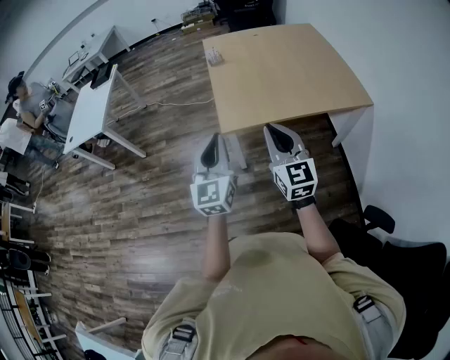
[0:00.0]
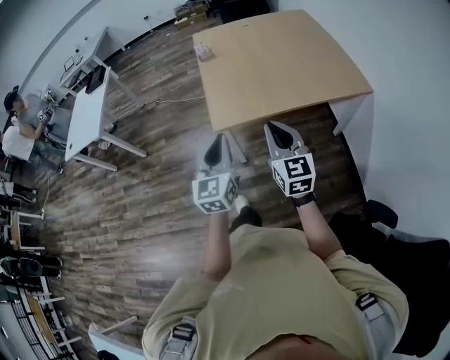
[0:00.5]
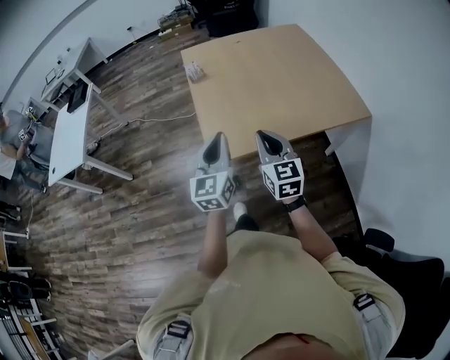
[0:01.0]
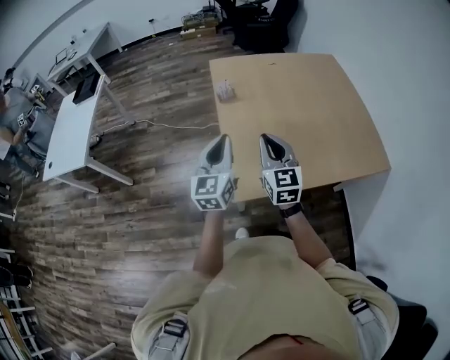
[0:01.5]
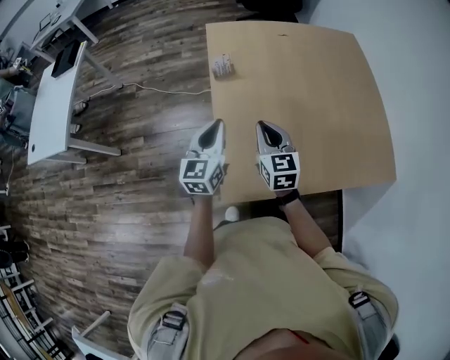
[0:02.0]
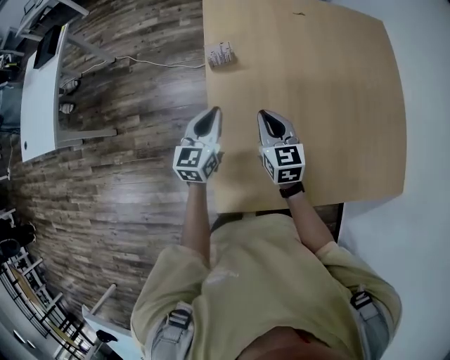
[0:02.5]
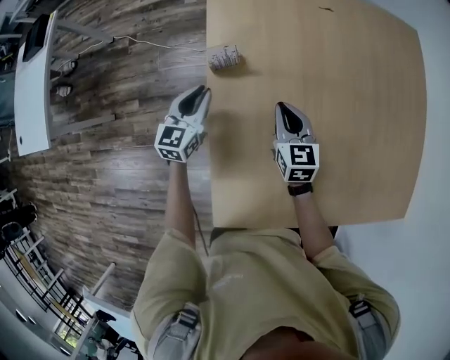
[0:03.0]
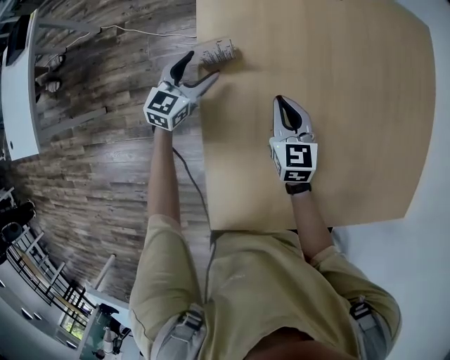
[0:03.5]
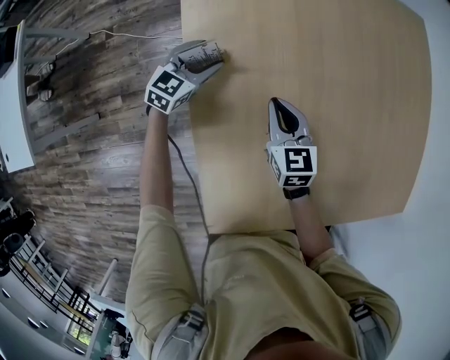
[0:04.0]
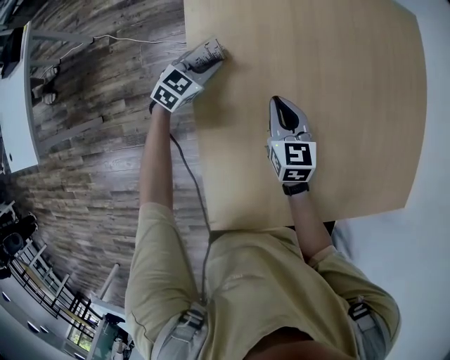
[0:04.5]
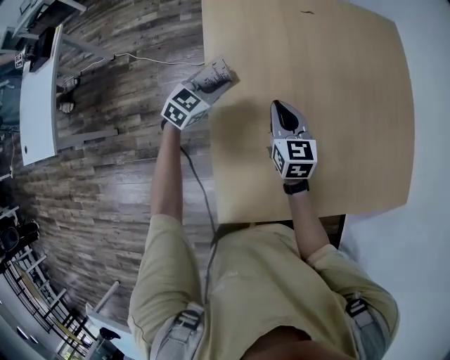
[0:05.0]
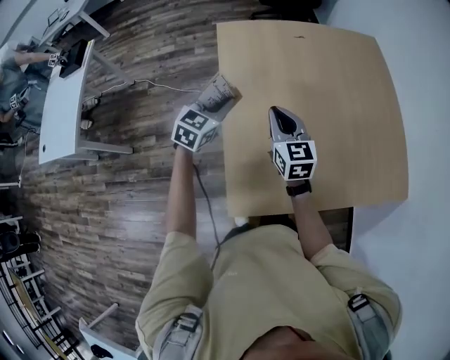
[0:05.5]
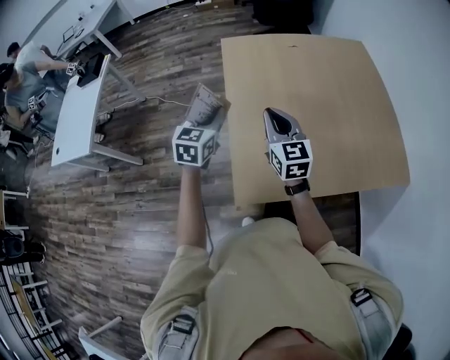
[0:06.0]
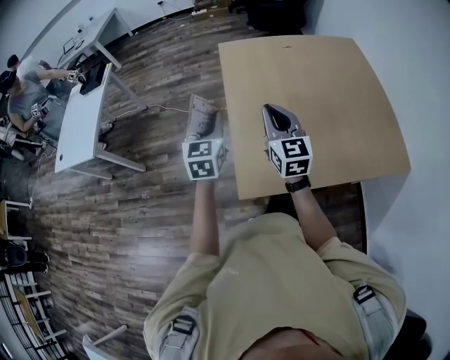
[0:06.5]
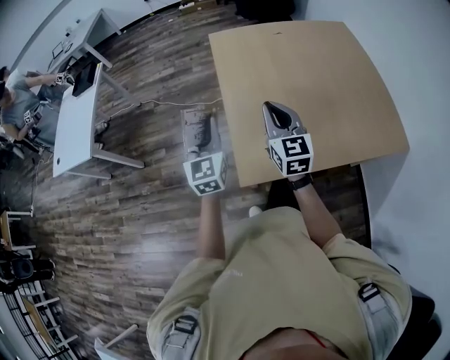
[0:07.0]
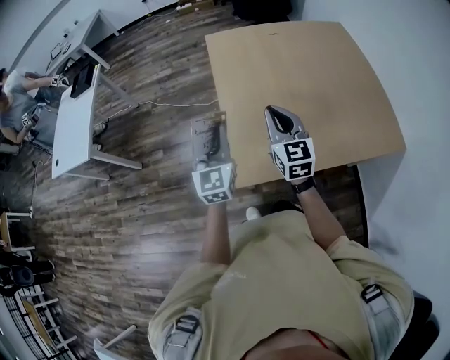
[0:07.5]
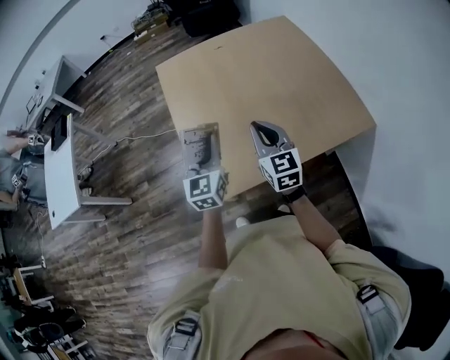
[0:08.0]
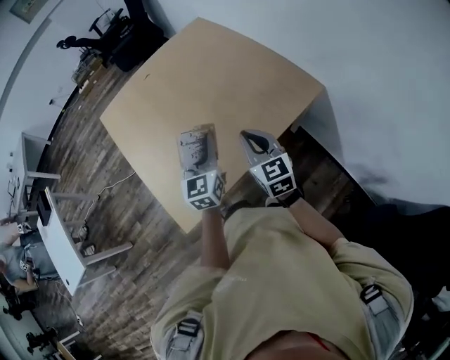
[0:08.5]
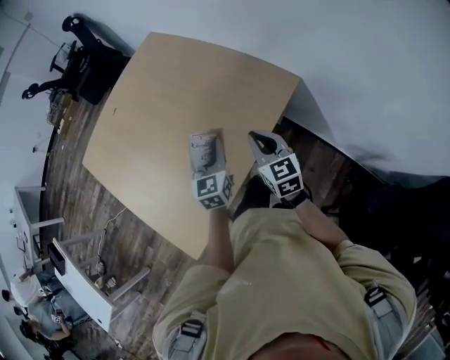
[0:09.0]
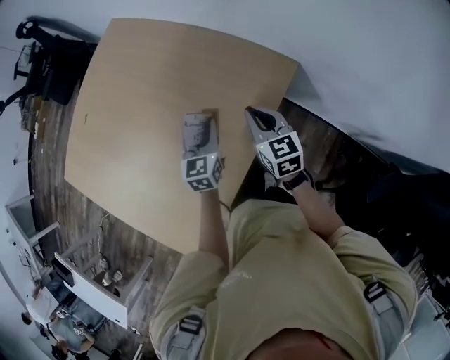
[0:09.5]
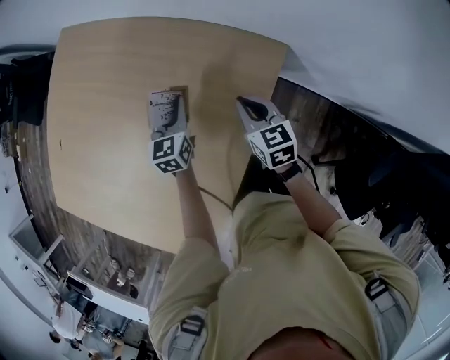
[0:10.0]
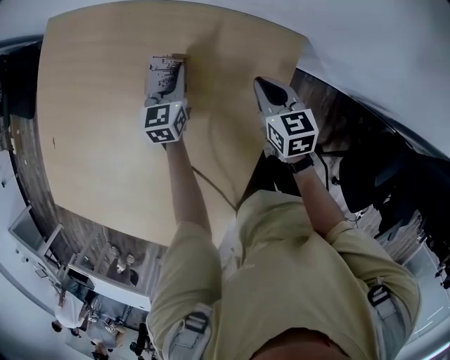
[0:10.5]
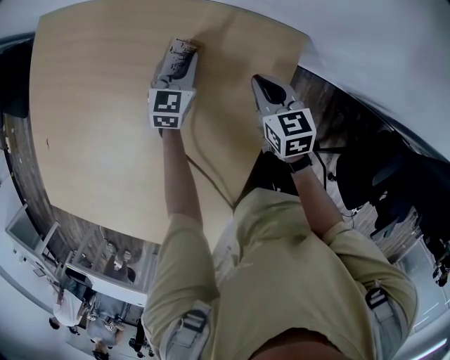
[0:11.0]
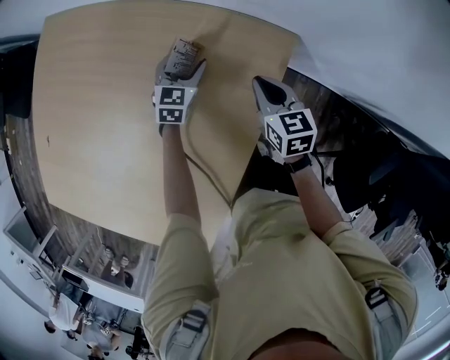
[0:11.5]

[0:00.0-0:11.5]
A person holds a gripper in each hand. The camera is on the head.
0:00.0 to 0:02.0: Both grippers are carried forward, approximately 60 cm. The right gripper rotates about 20 degrees. Meanwhile the left gripper turns by roughly 20 degrees.
0:02.0 to 0:04.0: The grippers both shift forward and downward by approximately 40 cm. The left gripper turns by some 40 degrees, and opens.
0:04.0 to 0:06.0: Both grippers travel together backward and upward, roughly 40 cm. The left gripper swivels approximately 20 degrees, and closes its fingers; the right gripper swivels some 20 degrees.
0:06.0 to 0:07.5: The left gripper shifts approximately 15 cm backward, and turns by roughly 20 degrees; the right gripper goes approximately 10 cm backward.
0:07.5 to 0:09.5: The pair of grippers is taken roughly 60 cm. The right gripper swivels some 50 degrees, while the left gripper turns by about 60 degrees.
0:09.5 to 0:11.5: The left gripper heads forward and downward, covering about 25 cm, turns by approximately 30 degrees, and opens. The right gripper travels downward, forward and to the right by roughly 20 cm.

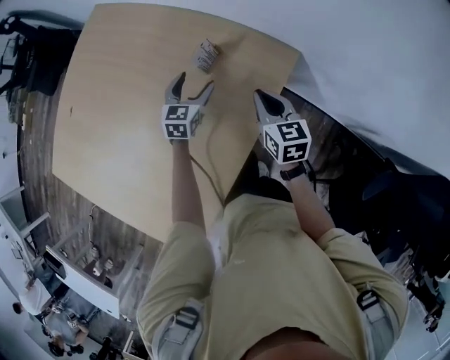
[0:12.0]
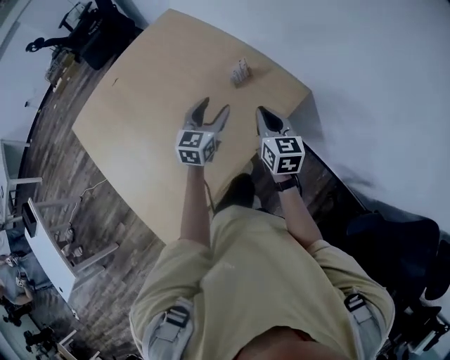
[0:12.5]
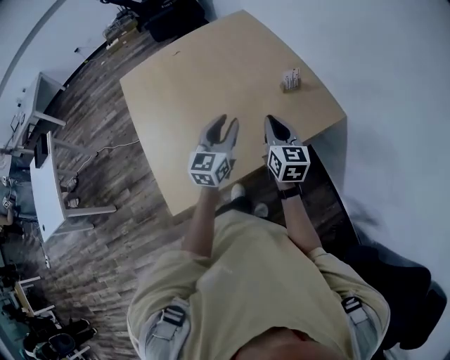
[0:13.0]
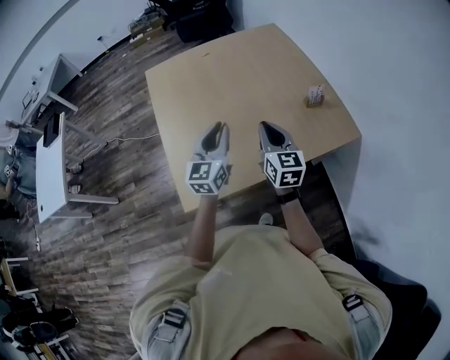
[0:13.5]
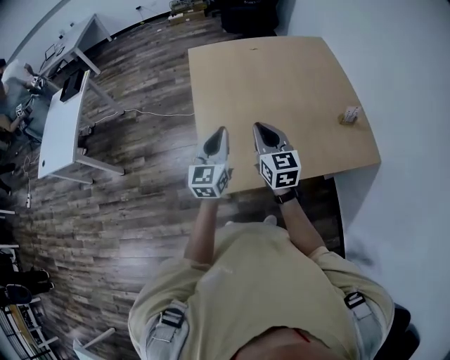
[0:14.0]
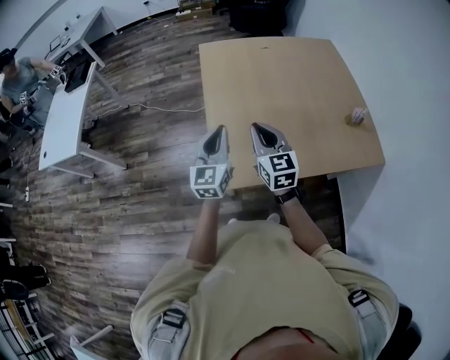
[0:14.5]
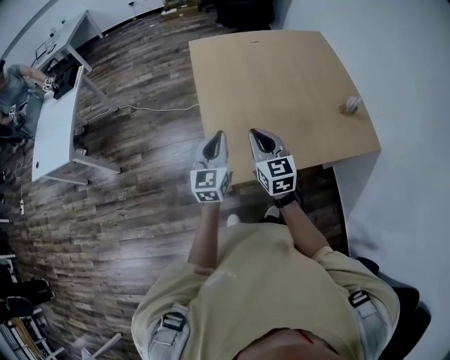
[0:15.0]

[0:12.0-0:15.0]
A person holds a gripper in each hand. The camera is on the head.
0:12.0 to 0:13.5: The right gripper ends up roughly 40 cm from where it was, and changes its angle by some 40 degrees. Meanwhile the left gripper shifts by approximately 50 cm, changes its angle by roughly 50 degrees, and closes up.
0:13.5 to 0:15.0: The grippers both shift to the left by approximately 30 cm.

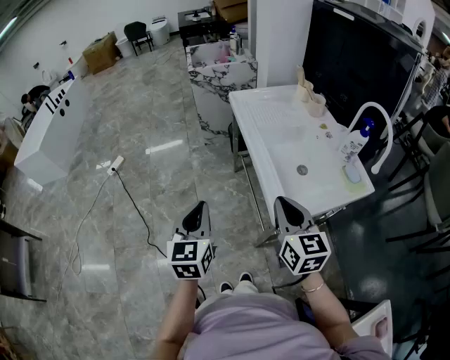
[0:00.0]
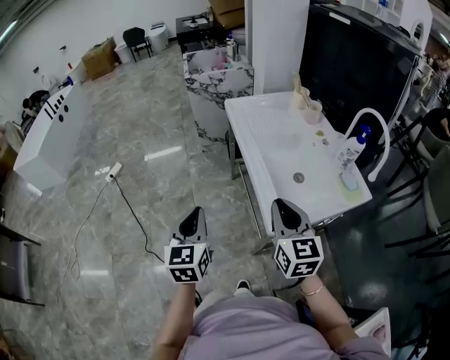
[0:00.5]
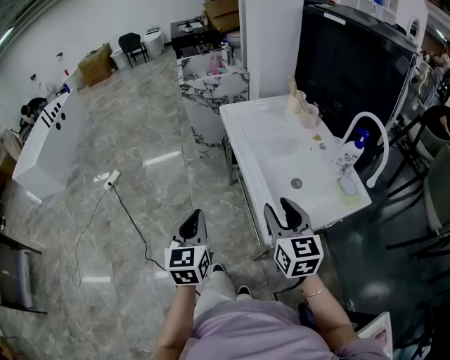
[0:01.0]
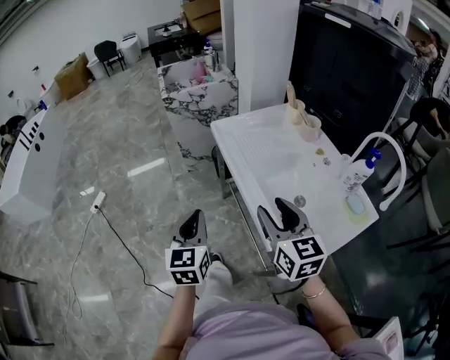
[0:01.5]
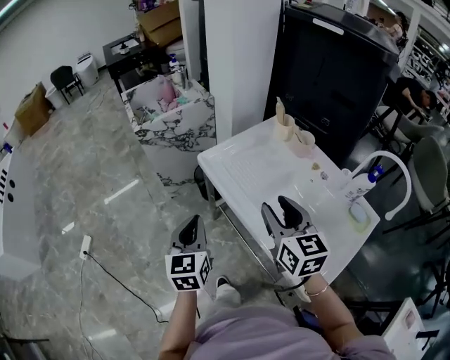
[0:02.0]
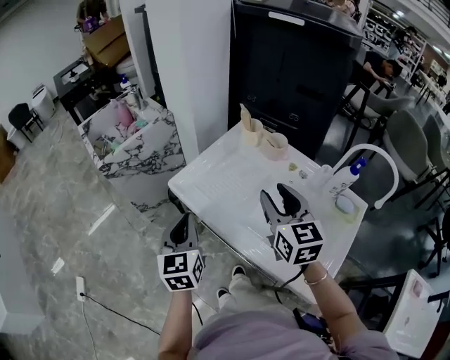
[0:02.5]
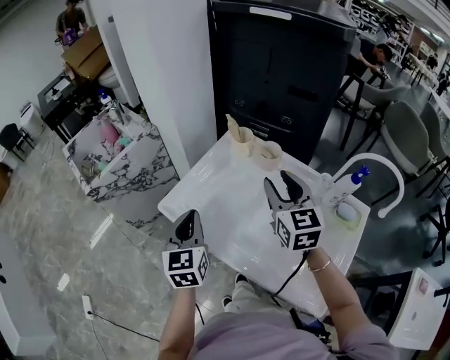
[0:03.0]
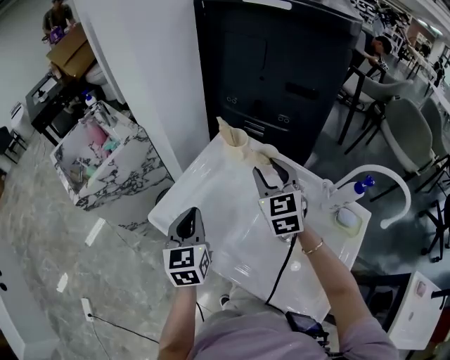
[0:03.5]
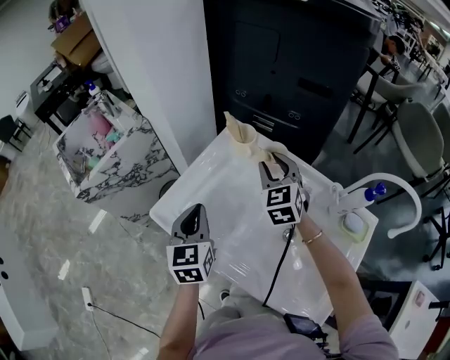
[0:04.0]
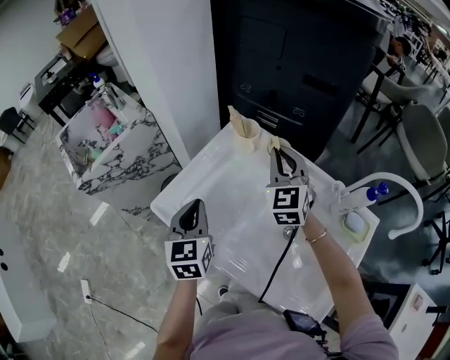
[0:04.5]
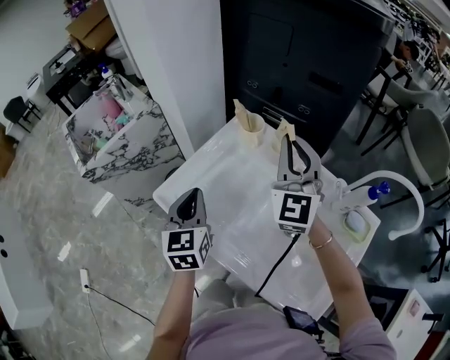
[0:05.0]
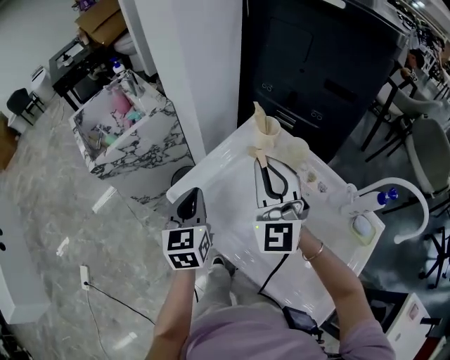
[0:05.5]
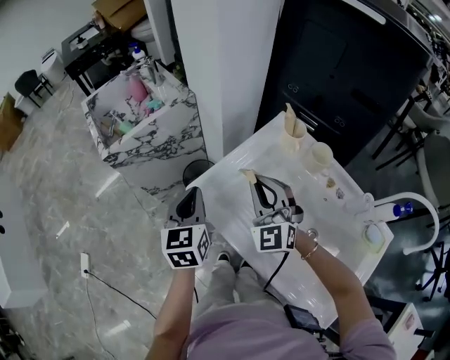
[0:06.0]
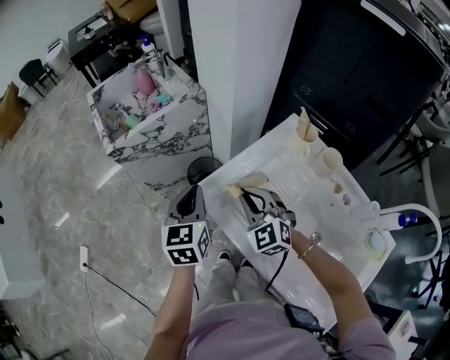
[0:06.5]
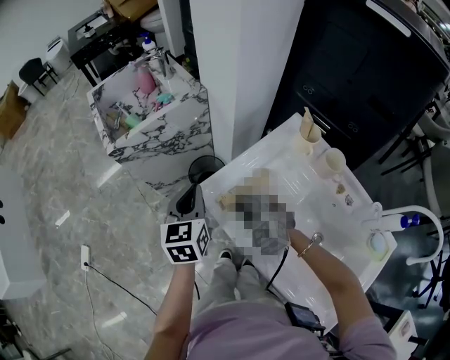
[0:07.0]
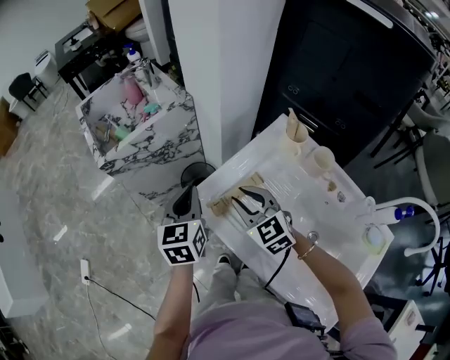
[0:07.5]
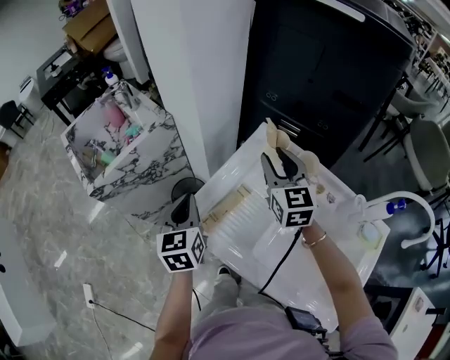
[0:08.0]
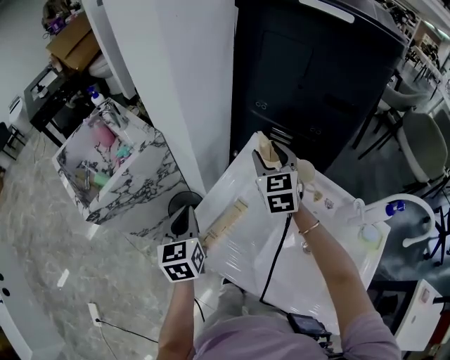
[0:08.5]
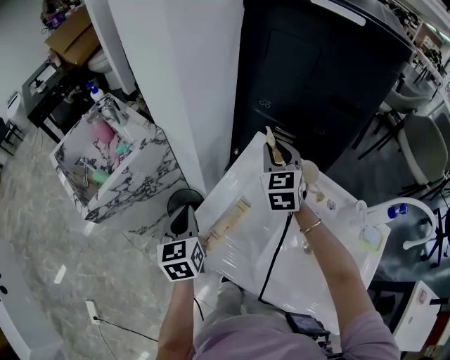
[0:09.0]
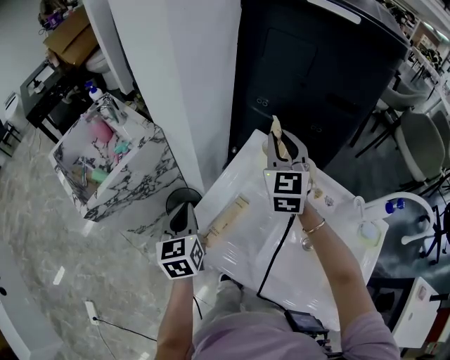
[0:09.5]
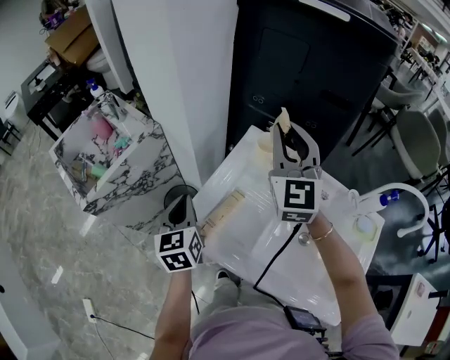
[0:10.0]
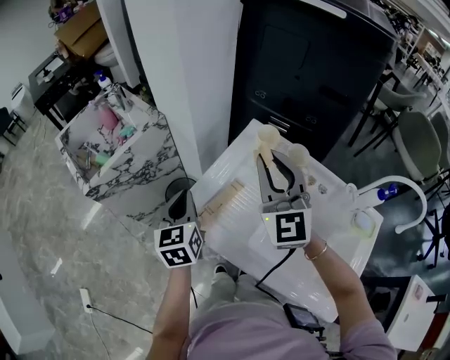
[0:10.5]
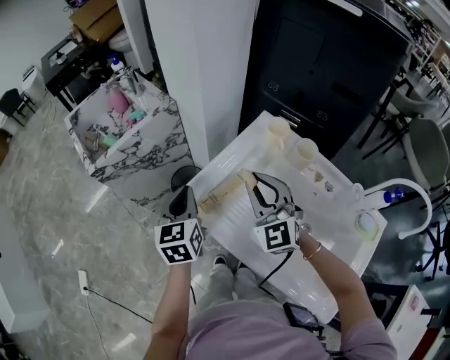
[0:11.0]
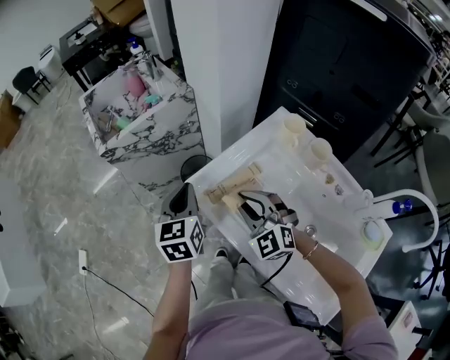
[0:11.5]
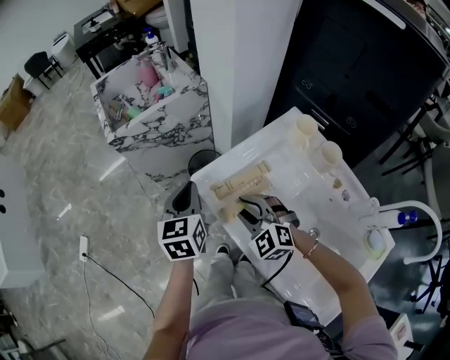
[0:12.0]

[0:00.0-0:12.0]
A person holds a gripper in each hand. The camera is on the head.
0:00.0 to 0:02.0: Both grippers travel together forward, approximately 35 cm. The right gripper opens.
0:02.0 to 0:04.0: The grippers both shift forward by some 30 cm. The right gripper changes its angle by about 40 degrees.
0:04.0 to 0:06.0: The left gripper is displaced to the left by approximately 15 cm. Meanwhile the right gripper travels to the left and backward by roughly 20 cm, changes its angle by about 30 degrees, and closes.
0:06.0 to 0:08.0: The left gripper travels forward by some 5 cm, while the right gripper goes approximately 15 cm to the right and forward, rotates roughly 40 degrees, and opens its fingers.
0:08.0 to 0:10.0: The right gripper shifts some 10 cm upward, changes its angle by approximately 30 degrees, and closes up.
0:10.0 to 0:12.0: The left gripper ends up some 10 cm from where it was. The right gripper goes roughly 30 cm downward, and tips its fingers downward by approximately 40 degrees.
